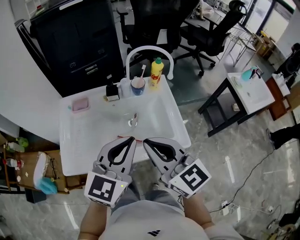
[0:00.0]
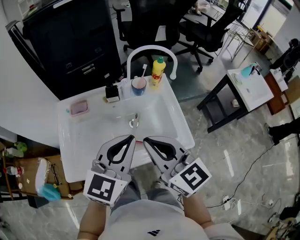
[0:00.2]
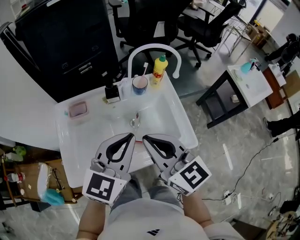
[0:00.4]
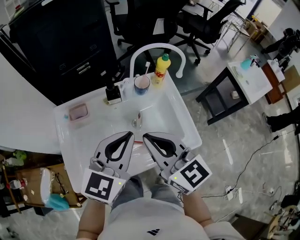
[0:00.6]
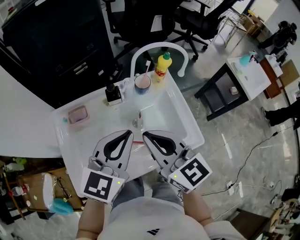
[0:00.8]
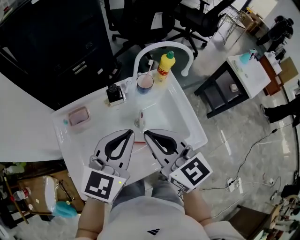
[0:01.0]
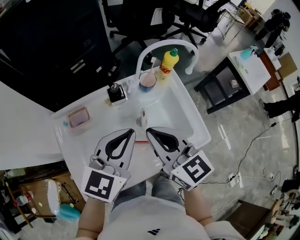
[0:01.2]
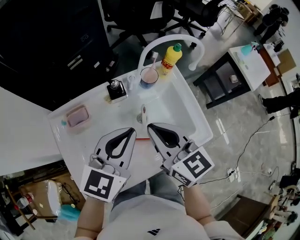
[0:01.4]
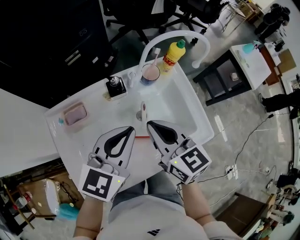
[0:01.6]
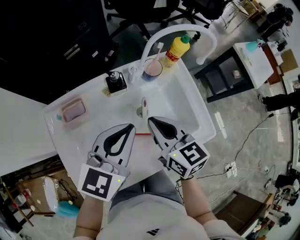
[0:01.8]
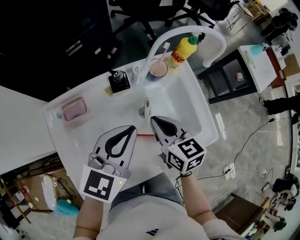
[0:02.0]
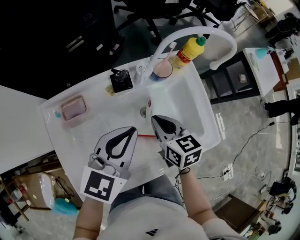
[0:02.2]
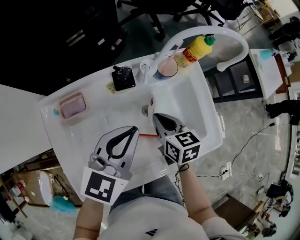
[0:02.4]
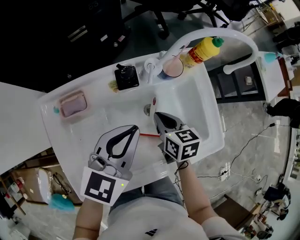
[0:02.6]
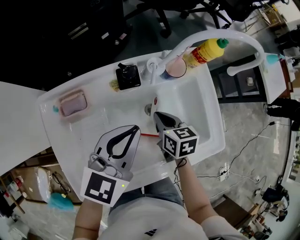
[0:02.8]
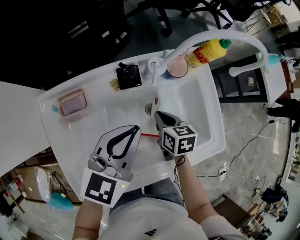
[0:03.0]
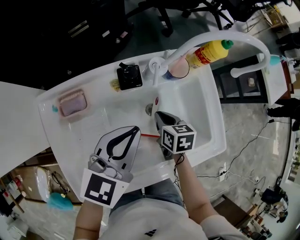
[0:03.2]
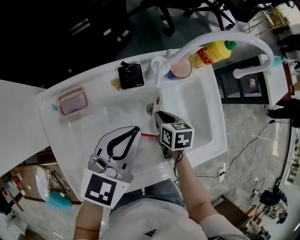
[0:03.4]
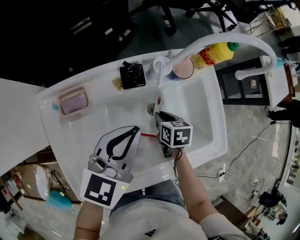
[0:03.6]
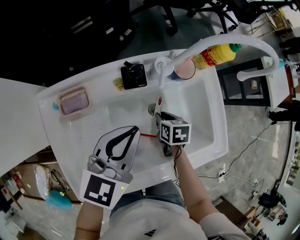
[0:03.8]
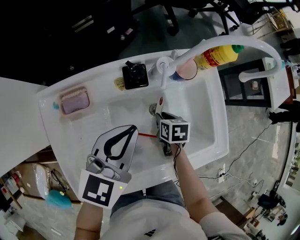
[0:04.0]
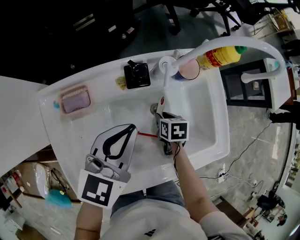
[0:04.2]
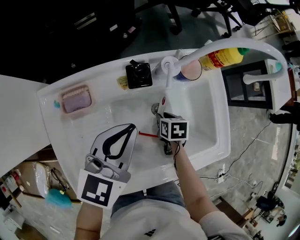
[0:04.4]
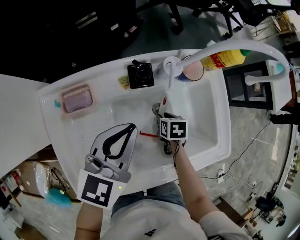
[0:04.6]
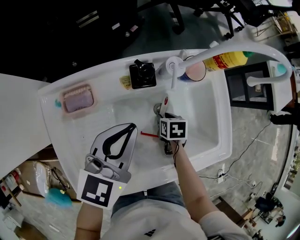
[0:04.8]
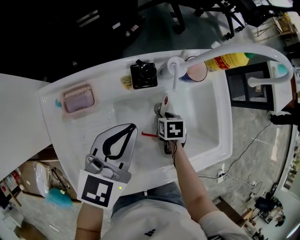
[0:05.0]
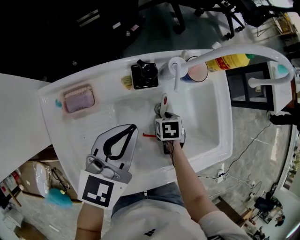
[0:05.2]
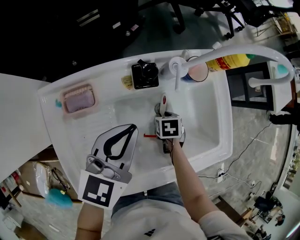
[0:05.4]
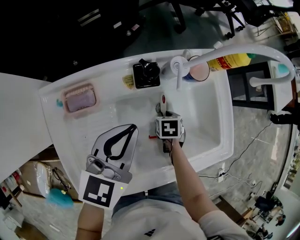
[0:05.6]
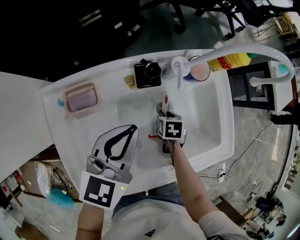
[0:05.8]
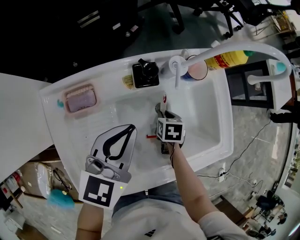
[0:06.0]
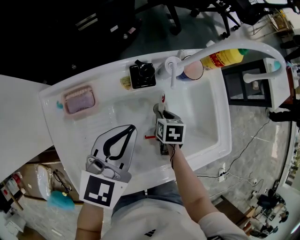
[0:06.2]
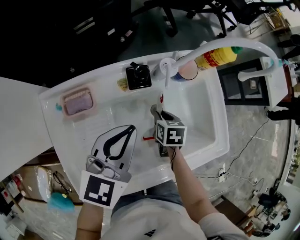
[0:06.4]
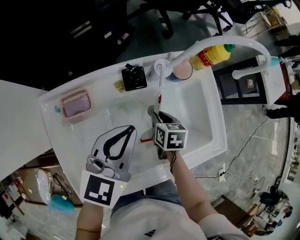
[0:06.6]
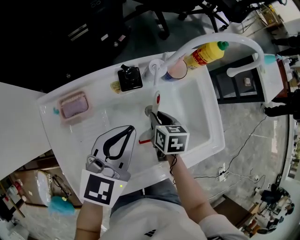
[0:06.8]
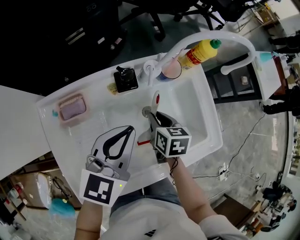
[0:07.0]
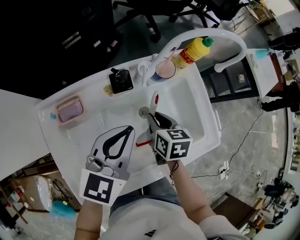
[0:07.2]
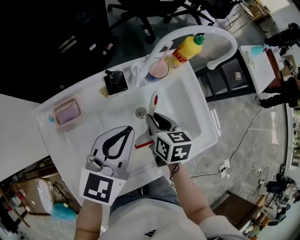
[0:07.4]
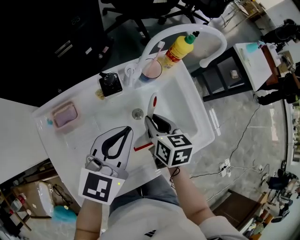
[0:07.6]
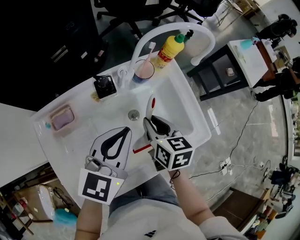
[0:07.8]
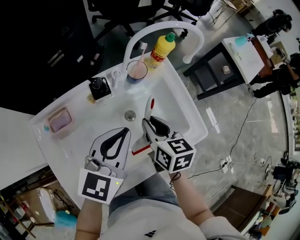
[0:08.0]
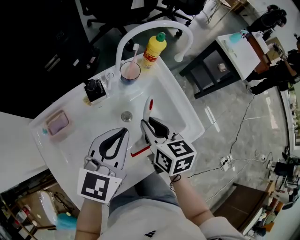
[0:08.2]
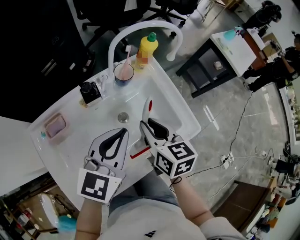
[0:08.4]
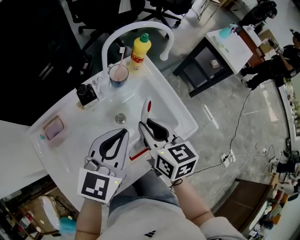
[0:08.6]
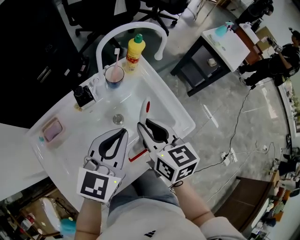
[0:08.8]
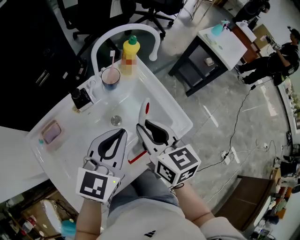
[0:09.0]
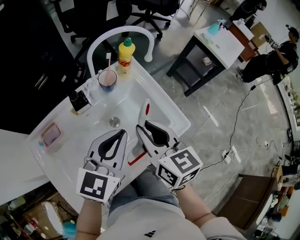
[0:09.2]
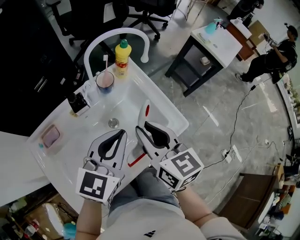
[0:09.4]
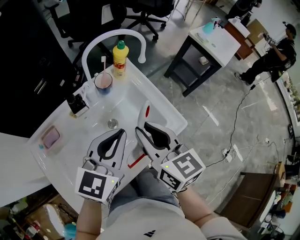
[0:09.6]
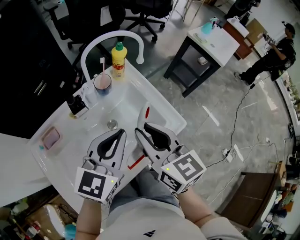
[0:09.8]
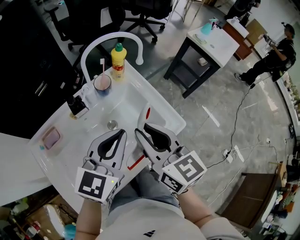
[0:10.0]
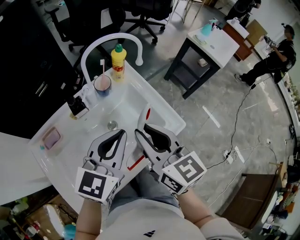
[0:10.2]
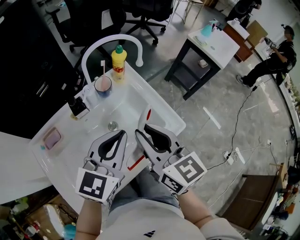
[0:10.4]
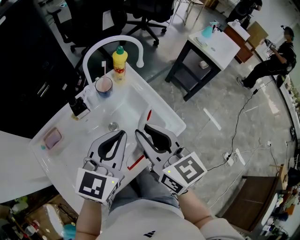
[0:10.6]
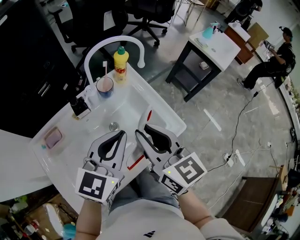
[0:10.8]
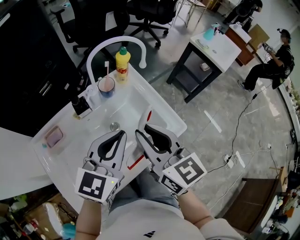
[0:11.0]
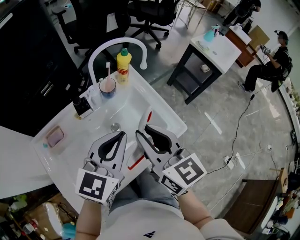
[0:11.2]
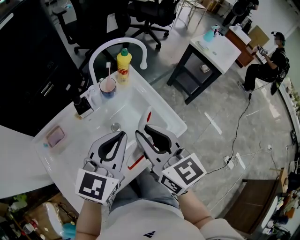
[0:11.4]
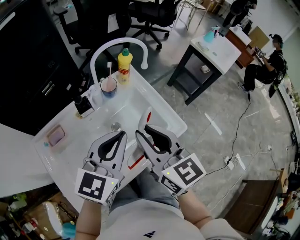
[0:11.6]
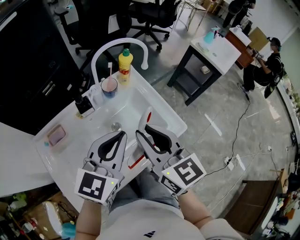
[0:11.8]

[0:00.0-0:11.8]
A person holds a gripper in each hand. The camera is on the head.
0:00.0 to 0:01.4: The left gripper travels forward and to the left by roughly 15 cm; the right gripper shifts approximately 20 cm forward, to the left and downward, and rotates roughly 20 degrees.
0:01.4 to 0:03.0: The right gripper shifts some 25 cm downward, and points its fingers some 30 degrees further downward. The left gripper goes approximately 10 cm downward.
0:03.0 to 0:04.4: The right gripper is displaced downward by some 10 cm, and opens.
0:04.4 to 0:06.0: There are only small adjustments of the grippers.
0:06.0 to 0:07.4: The left gripper travels to the right by roughly 5 cm. The right gripper shifts some 15 cm upward, and turns by some 30 degrees.
0:07.4 to 0:08.8: The right gripper heads upward and to the right, covering some 15 cm; the left gripper moves to the right, some 10 cm.
0:08.8 to 0:10.4: The left gripper moves about 5 cm, while the right gripper moves upward, about 10 cm.
0:10.4 to 0:11.8: The grippers move only a little.

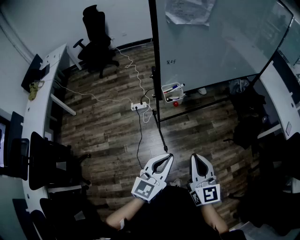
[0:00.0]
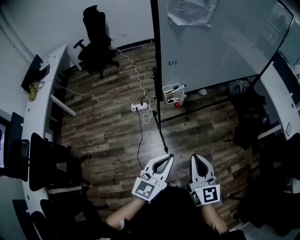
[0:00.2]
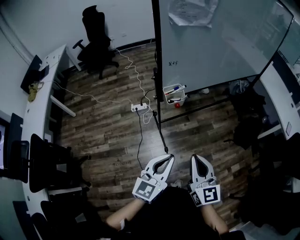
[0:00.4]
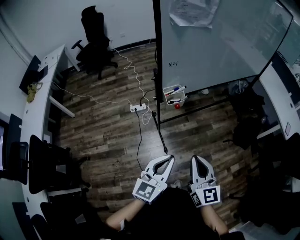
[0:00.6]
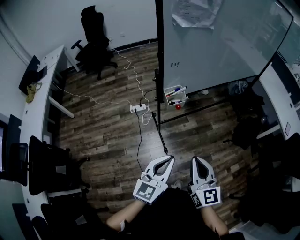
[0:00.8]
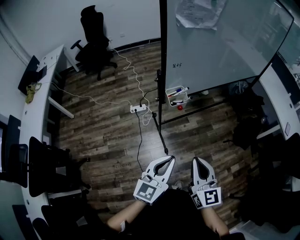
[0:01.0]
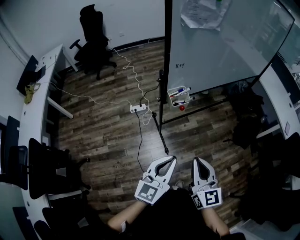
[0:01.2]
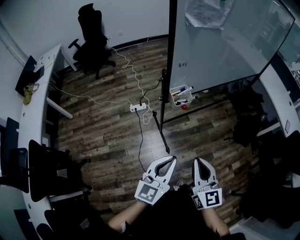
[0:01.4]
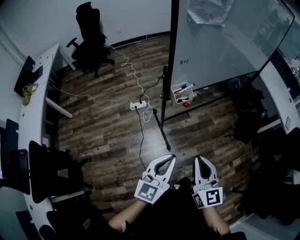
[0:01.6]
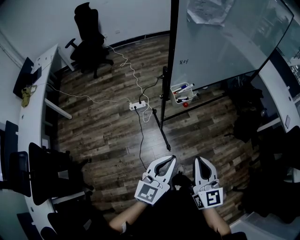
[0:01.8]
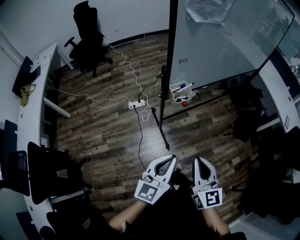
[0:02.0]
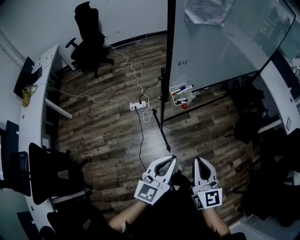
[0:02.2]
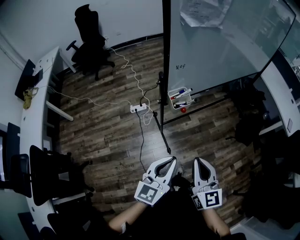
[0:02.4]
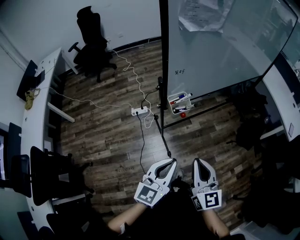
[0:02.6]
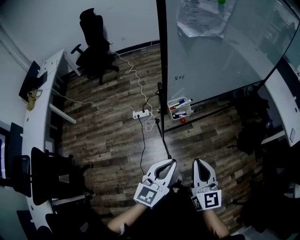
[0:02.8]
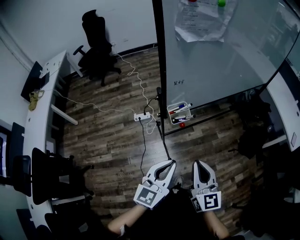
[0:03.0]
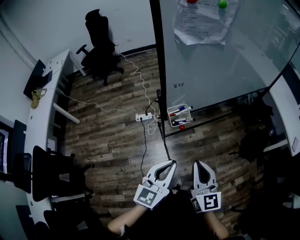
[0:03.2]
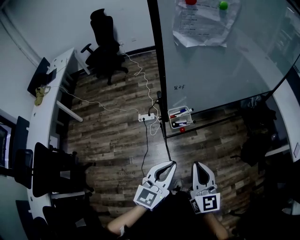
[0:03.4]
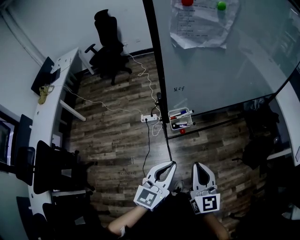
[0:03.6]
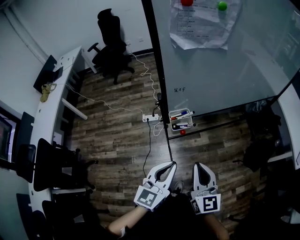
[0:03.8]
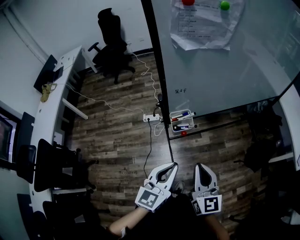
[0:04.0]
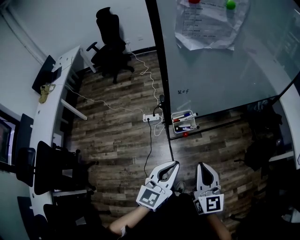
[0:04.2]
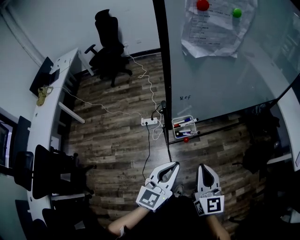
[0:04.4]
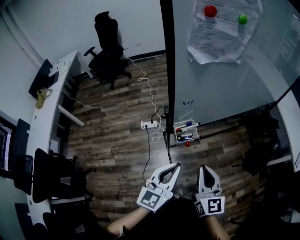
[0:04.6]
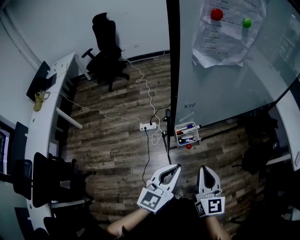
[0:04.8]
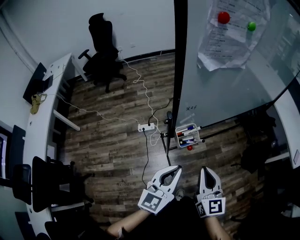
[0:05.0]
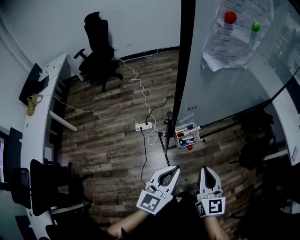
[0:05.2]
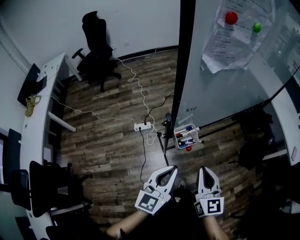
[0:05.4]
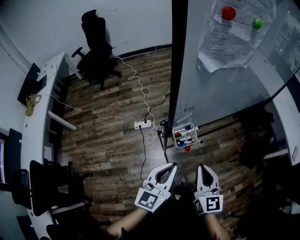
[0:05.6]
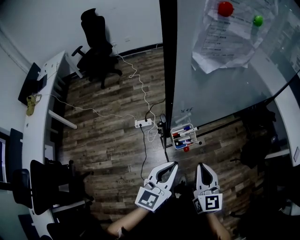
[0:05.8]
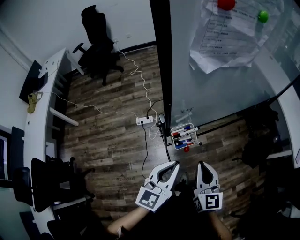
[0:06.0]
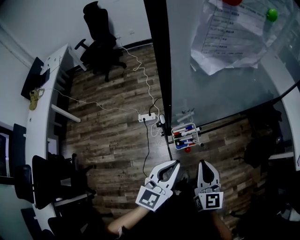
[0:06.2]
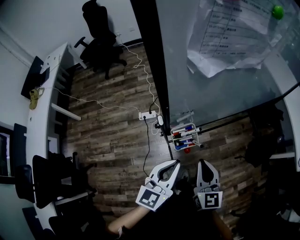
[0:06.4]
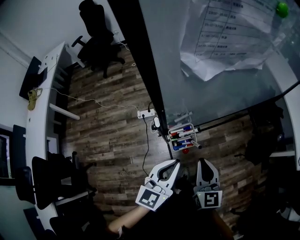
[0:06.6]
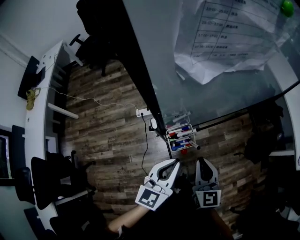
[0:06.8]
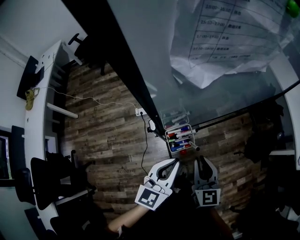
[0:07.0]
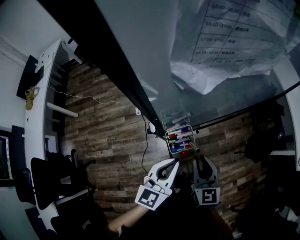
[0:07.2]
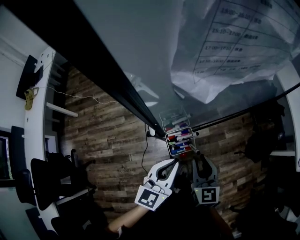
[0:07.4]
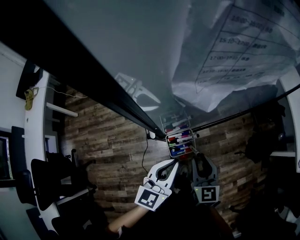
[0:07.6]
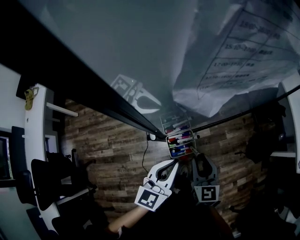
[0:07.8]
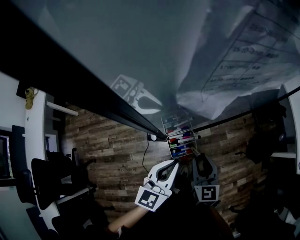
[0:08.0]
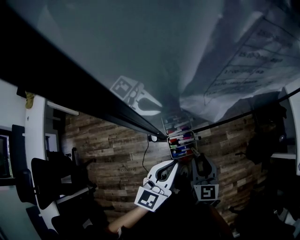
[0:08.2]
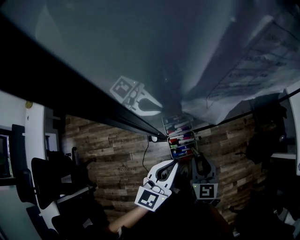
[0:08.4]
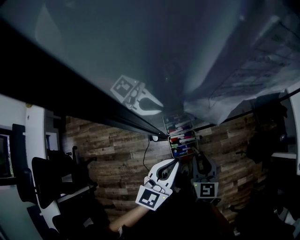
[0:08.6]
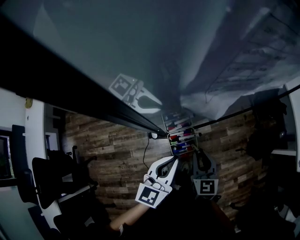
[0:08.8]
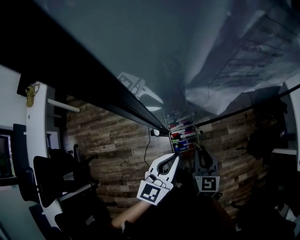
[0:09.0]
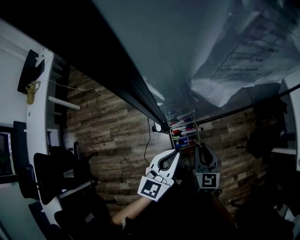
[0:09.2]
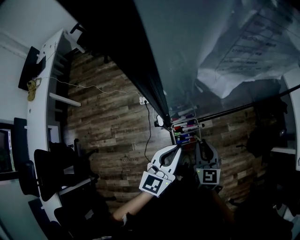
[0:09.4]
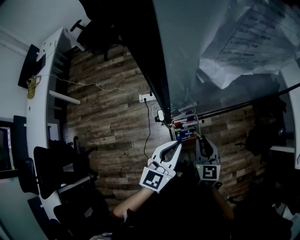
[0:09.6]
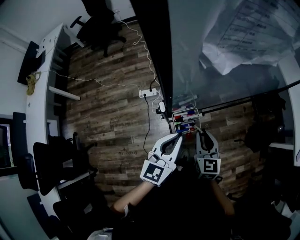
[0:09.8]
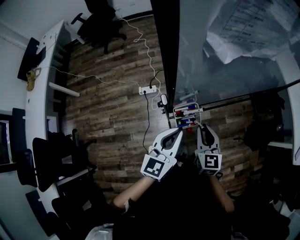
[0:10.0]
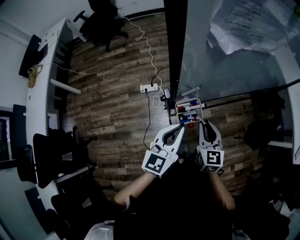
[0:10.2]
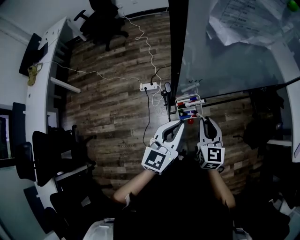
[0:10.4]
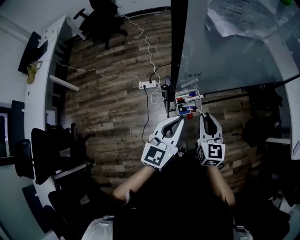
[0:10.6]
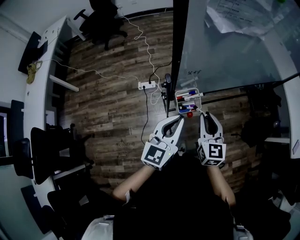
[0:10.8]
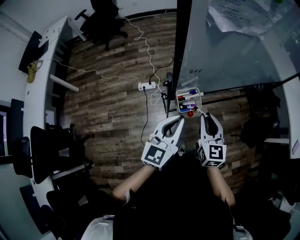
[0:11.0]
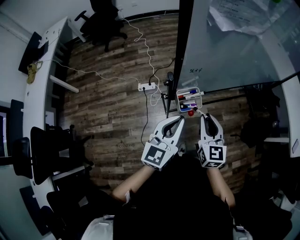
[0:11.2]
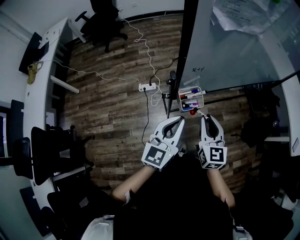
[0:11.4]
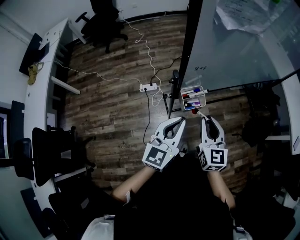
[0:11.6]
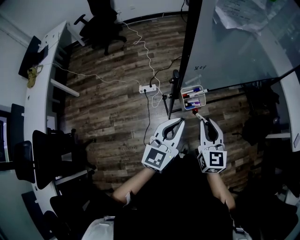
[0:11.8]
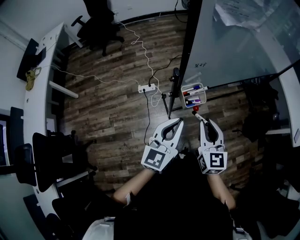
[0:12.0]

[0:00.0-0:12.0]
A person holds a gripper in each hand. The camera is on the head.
0:00.0 to 0:01.6: Both grippers travel together to the left, some 5 cm.
0:01.6 to 0:03.0: The two grippers go roughly 10 cm forward.
0:03.0 to 0:04.4: Both grippers travel together forward, approximately 5 cm.
0:04.4 to 0:06.0: The grippers both shift forward by approximately 5 cm.
0:06.0 to 0:07.6: The left gripper shifts roughly 5 cm forward. The right gripper travels forward and downward by approximately 10 cm, and opens its fingers.
0:07.6 to 0:10.4: There are only small adjustments of the grippers.
0:10.4 to 0:12.0: The right gripper is displaced backward and upward by roughly 10 cm. The left gripper shifts approximately 5 cm backward.
